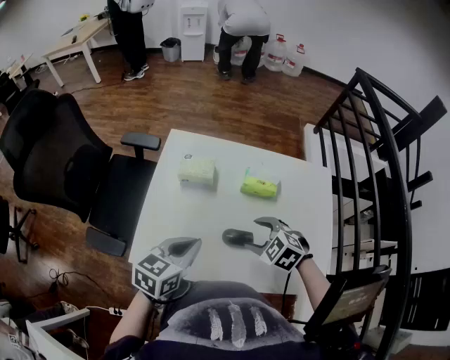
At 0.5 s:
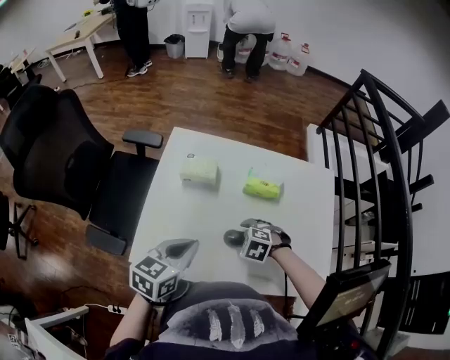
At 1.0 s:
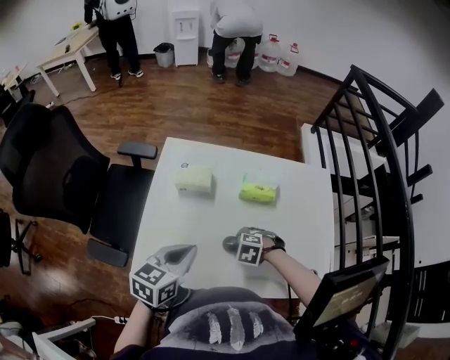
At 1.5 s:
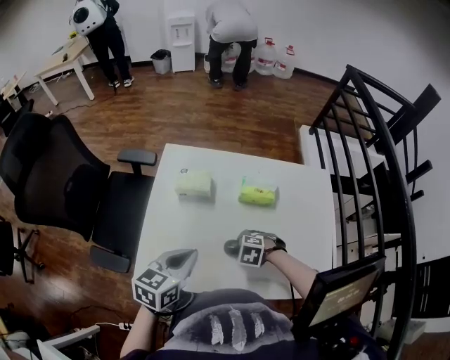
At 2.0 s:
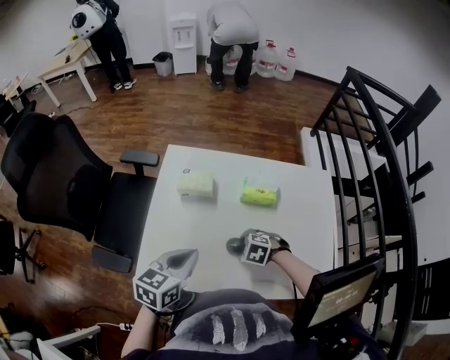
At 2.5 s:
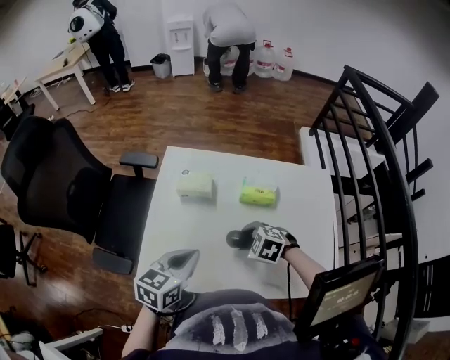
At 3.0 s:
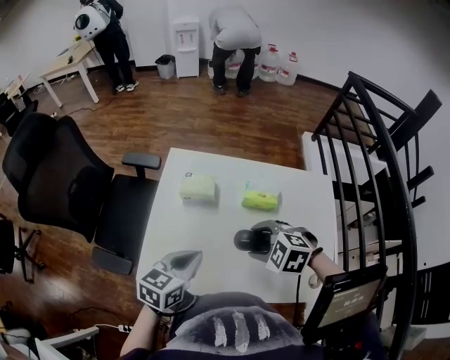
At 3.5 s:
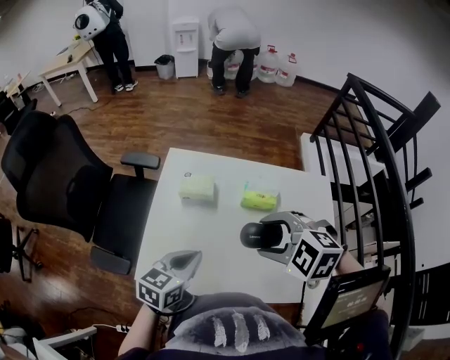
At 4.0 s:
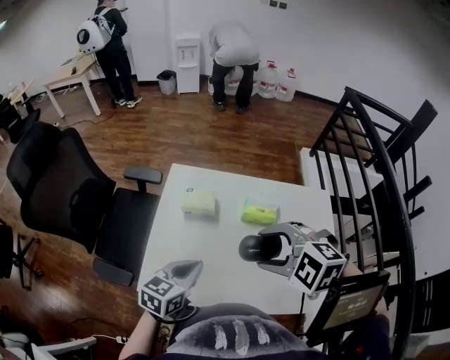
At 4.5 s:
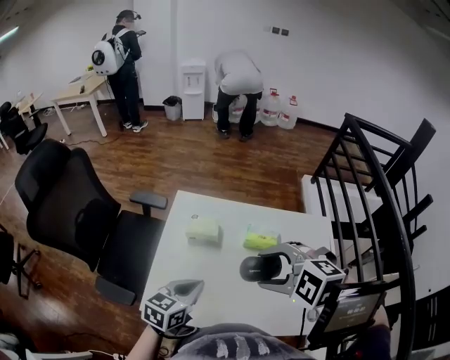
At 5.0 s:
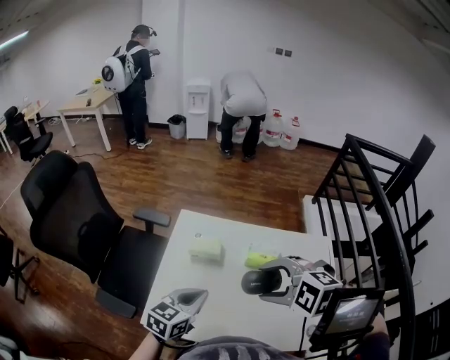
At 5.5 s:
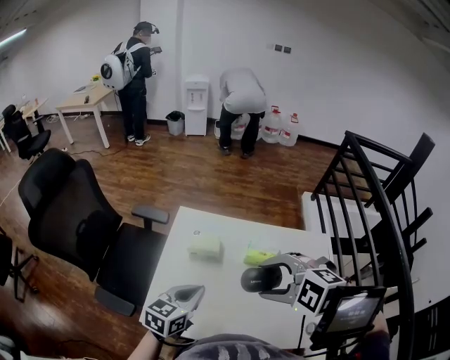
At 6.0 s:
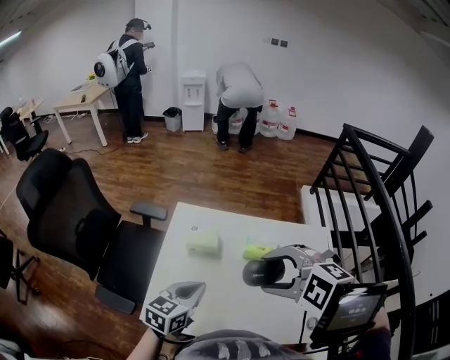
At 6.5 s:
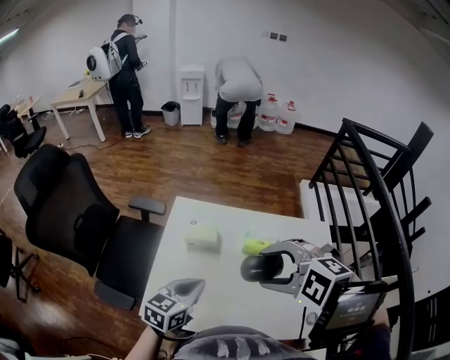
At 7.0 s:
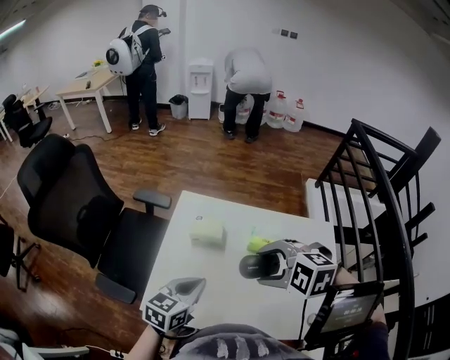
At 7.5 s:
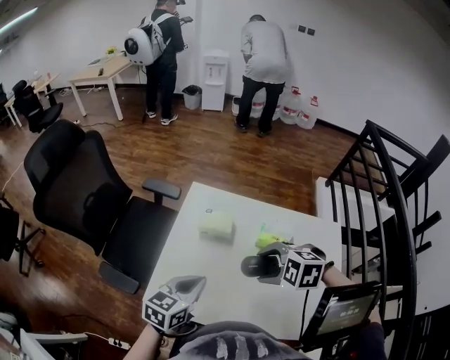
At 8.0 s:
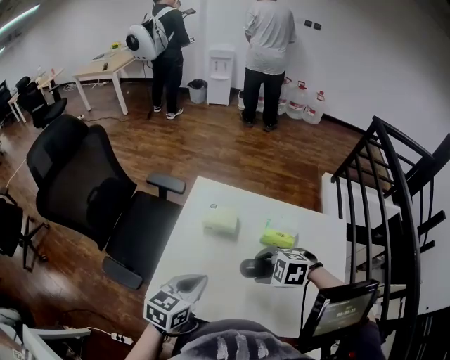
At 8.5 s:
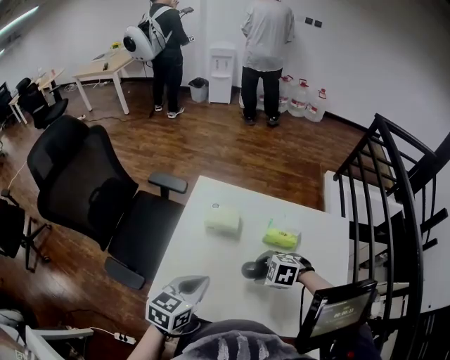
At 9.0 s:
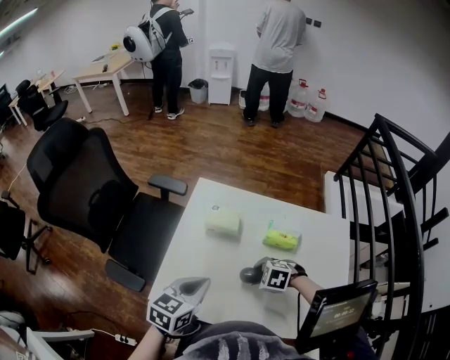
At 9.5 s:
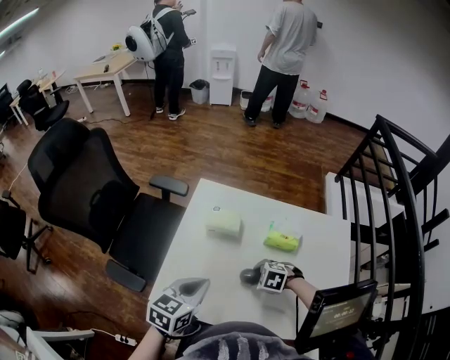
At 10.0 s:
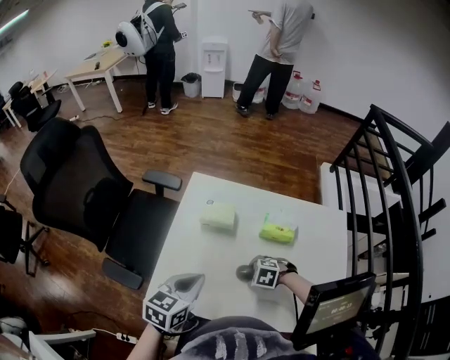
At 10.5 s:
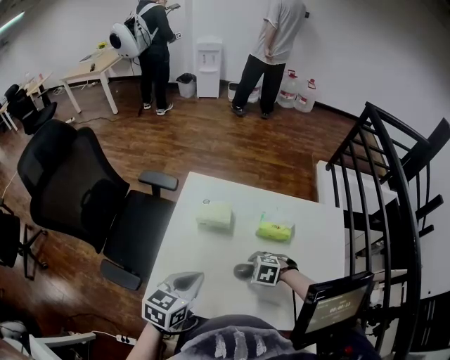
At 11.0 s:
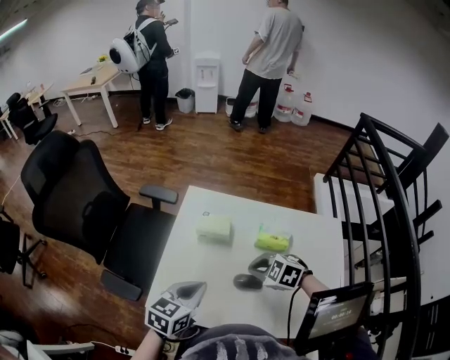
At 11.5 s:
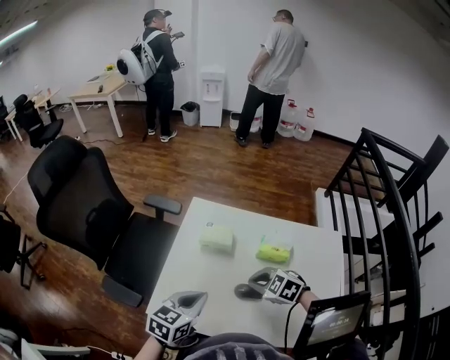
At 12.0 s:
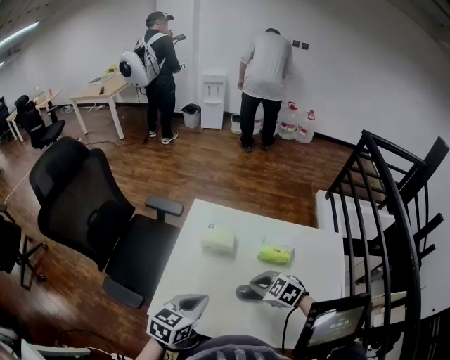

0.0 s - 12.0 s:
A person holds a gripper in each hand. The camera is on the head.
0.0 s - 2.0 s: The right gripper moves downward, approximately 10 cm.
2.0 s - 4.0 s: The right gripper is displaced upward by approximately 30 cm, and changes its angle by some 30 degrees.
4.0 s - 6.0 s: The right gripper moves upward, approximately 5 cm.
6.0 s - 8.0 s: The right gripper is displaced downward by some 20 cm, and turns by about 20 degrees. Meanwhile the left gripper shifts by roughly 5 cm.
8.0 s - 10.0 s: The right gripper goes roughly 15 cm downward.
10.0 s - 12.0 s: The right gripper heads upward, covering roughly 15 cm, rotates approximately 30 degrees, and closes its fingers.

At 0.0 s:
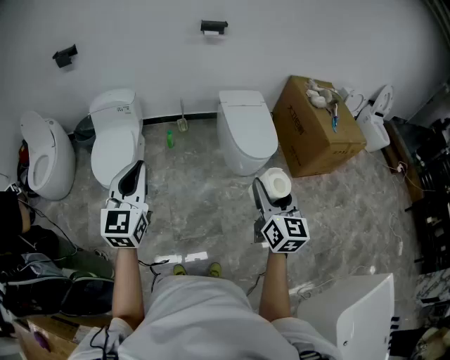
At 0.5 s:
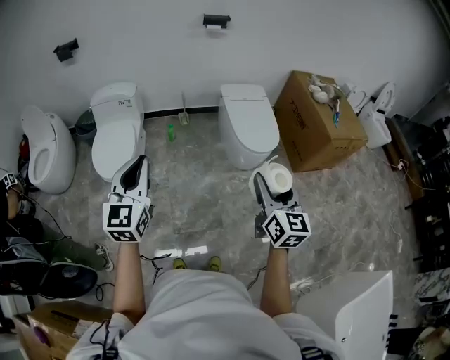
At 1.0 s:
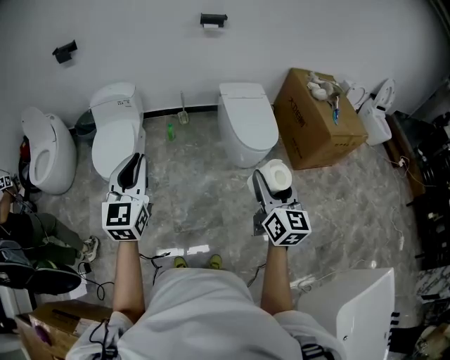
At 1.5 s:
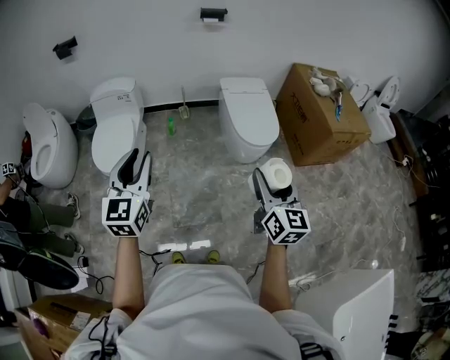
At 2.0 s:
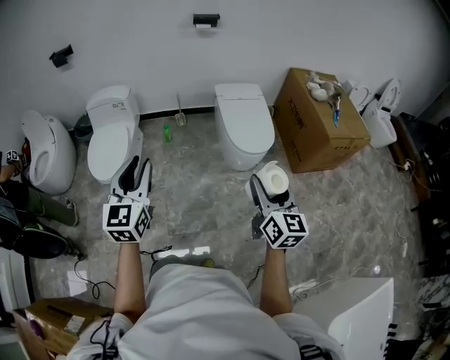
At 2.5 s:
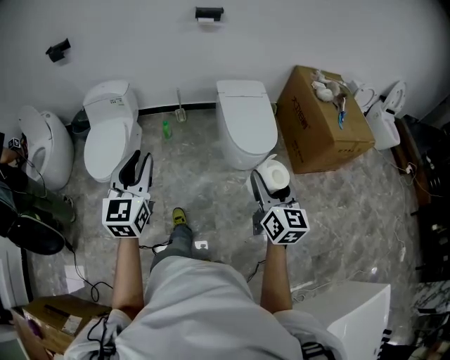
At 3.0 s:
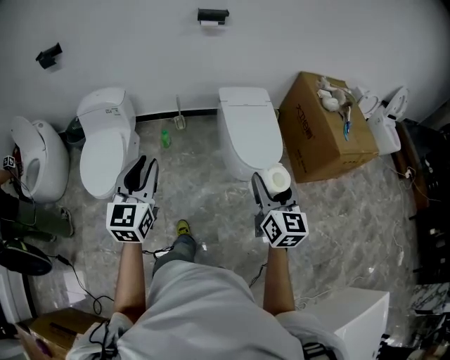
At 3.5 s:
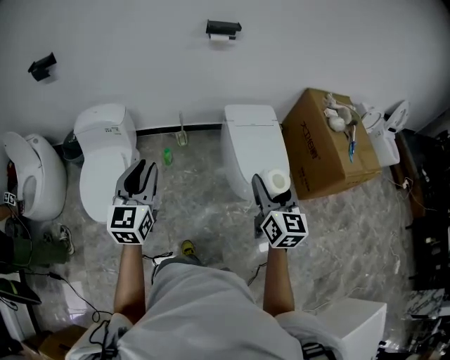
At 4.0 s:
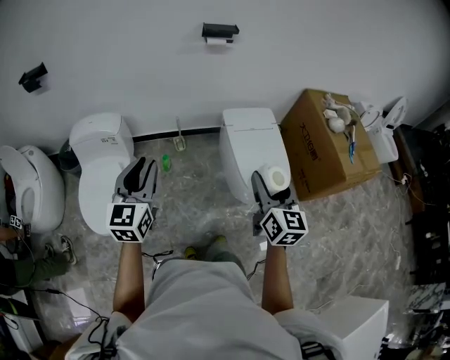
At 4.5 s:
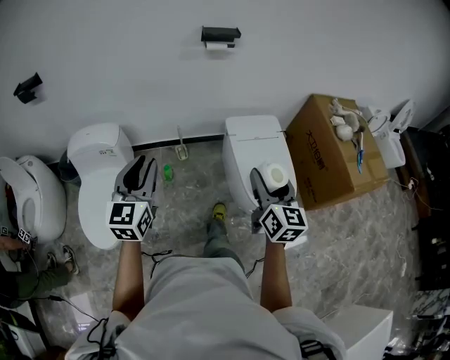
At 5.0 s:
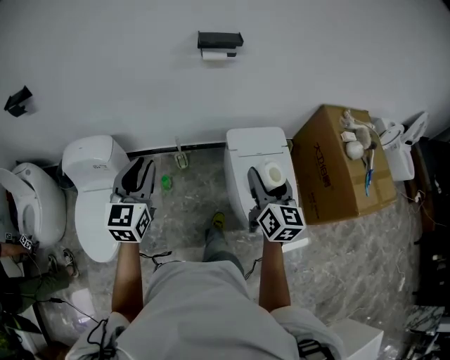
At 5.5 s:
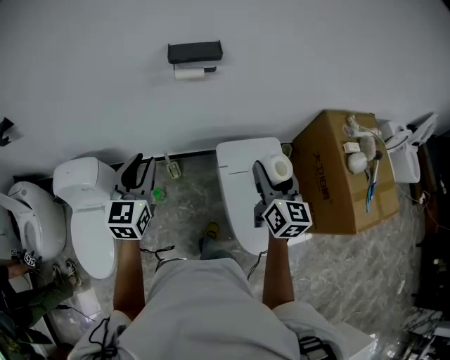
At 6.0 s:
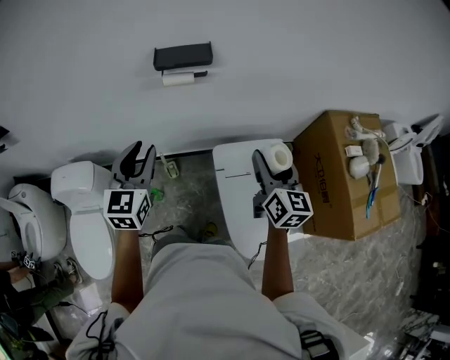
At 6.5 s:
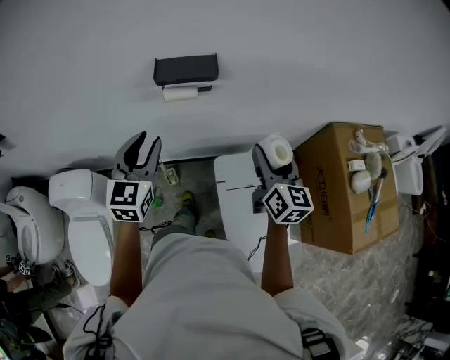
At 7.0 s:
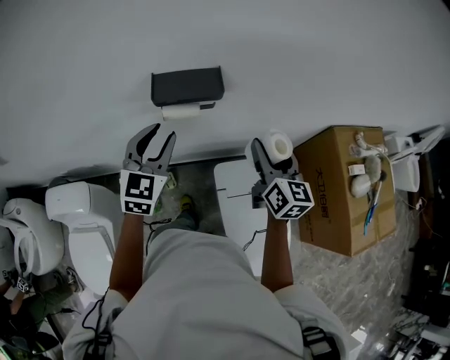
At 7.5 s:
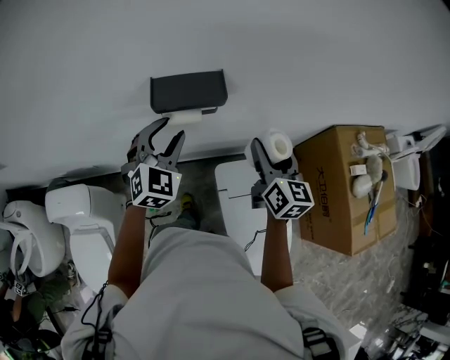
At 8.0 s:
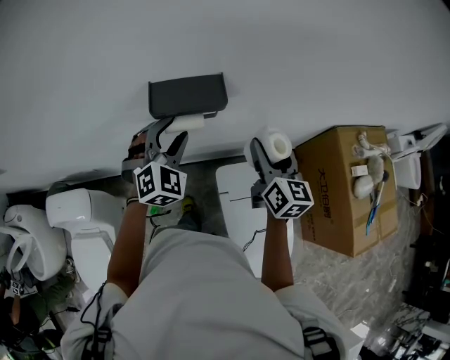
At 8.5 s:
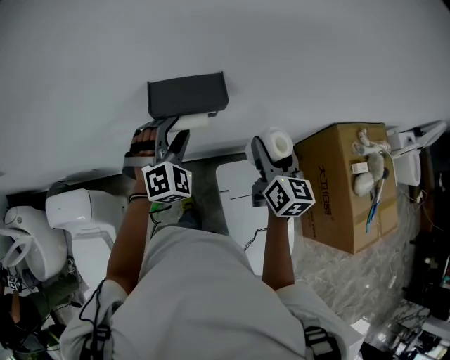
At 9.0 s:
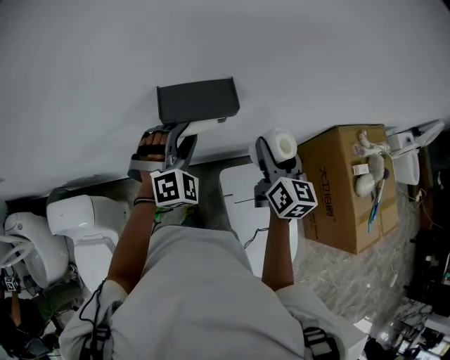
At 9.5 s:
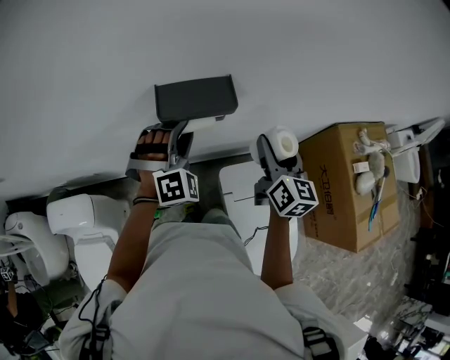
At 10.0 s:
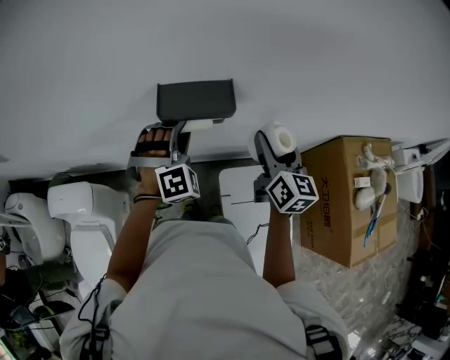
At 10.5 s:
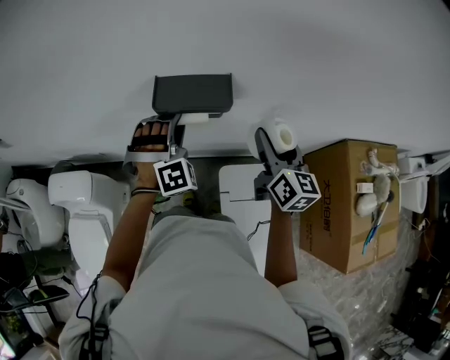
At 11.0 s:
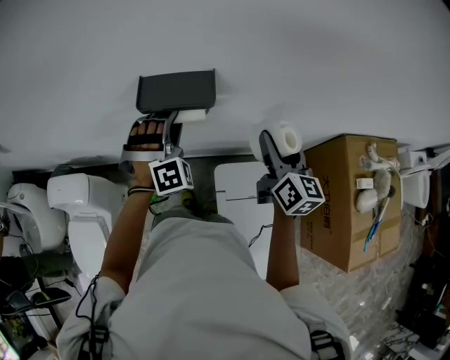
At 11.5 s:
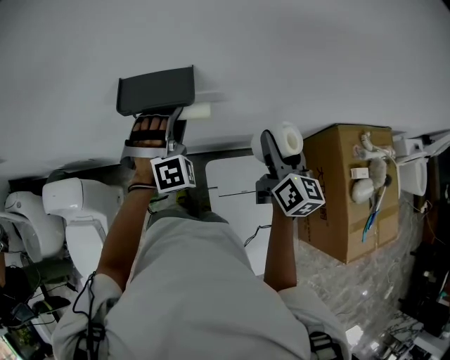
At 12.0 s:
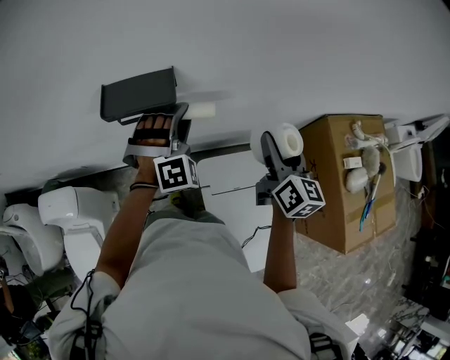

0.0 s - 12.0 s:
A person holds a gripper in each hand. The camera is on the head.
0.0 s - 2.0 s: The grippers both shift to the right by roughly 10 cm. The left gripper opens.
2.0 s - 4.0 s: The two grippers travel together, forward, approximately 40 cm.
4.0 s - 6.0 s: The two grippers travel together, forward, about 50 cm.
6.0 s - 8.0 s: The two grippers go approximately 25 cm forward. The left gripper rolls clockwise, seen from behind, by roughly 40 degrees.
8.0 s - 10.0 s: The left gripper swivels roughly 30 degrees.
10.0 s - 12.0 s: The right gripper heads to the right and backward, covering about 15 cm, while the left gripper travels to the right by roughly 15 cm.

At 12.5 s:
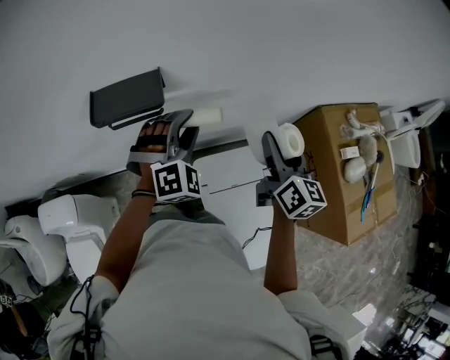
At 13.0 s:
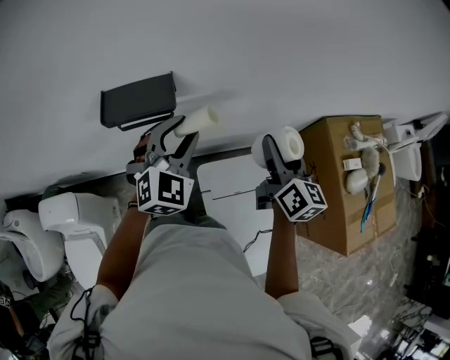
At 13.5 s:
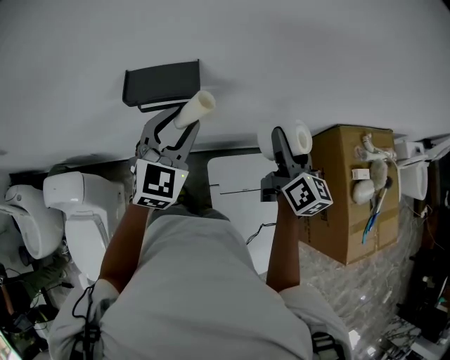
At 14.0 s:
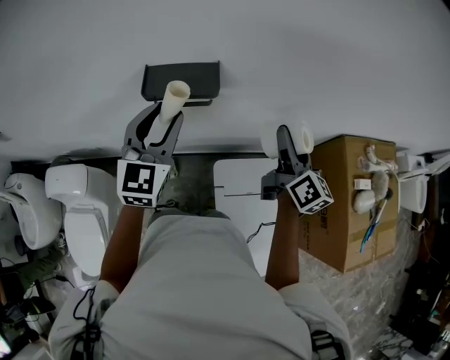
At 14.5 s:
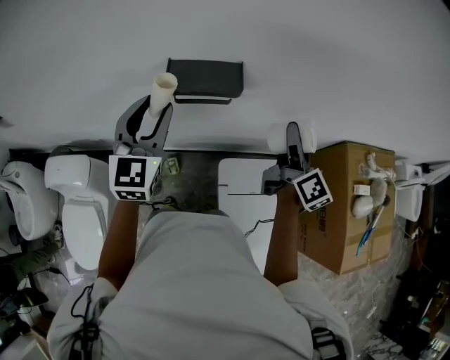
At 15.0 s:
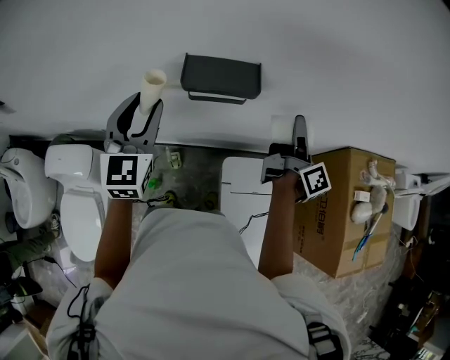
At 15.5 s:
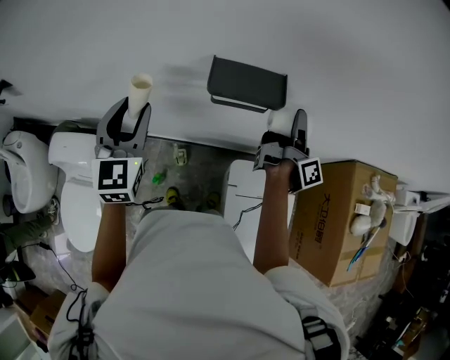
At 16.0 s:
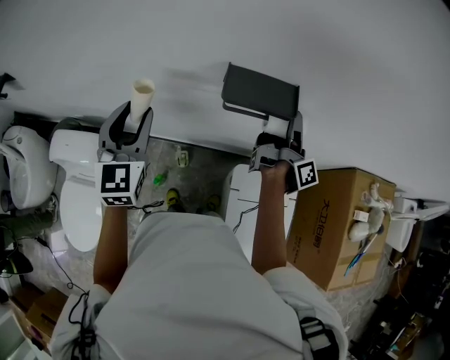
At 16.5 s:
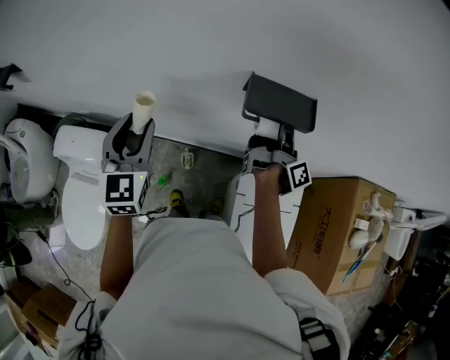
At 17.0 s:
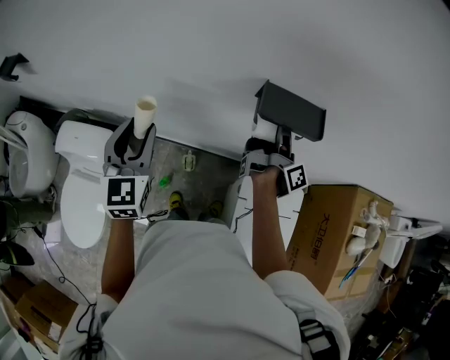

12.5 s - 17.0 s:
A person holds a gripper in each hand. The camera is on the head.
12.5 s - 14.5 s: The left gripper goes roughly 25 cm to the left and upward, and twists approximately 50 degrees counterclockwise, seen from behind. Meanwhile the right gripper heads to the left, covering some 10 cm, and changes its angle by about 20 degrees.
14.5 s - 17.0 s: Both grippers move to the left, roughly 25 cm. The right gripper rolls clockwise, seen from behind, by about 40 degrees, while the left gripper rotates roughly 20 degrees.
